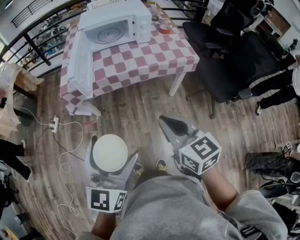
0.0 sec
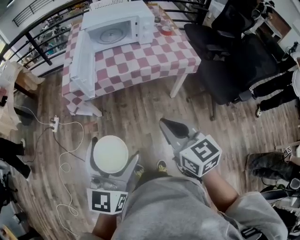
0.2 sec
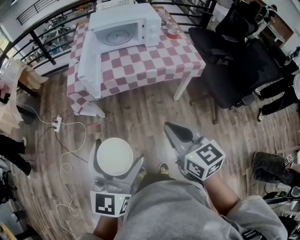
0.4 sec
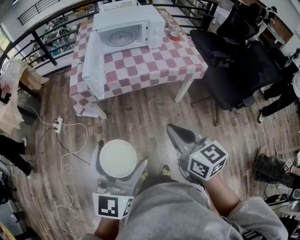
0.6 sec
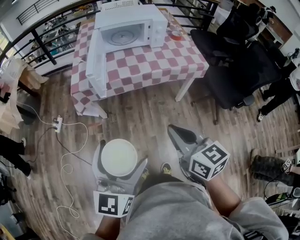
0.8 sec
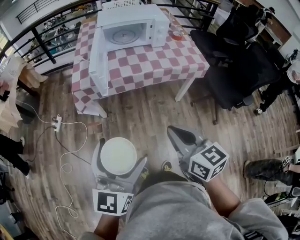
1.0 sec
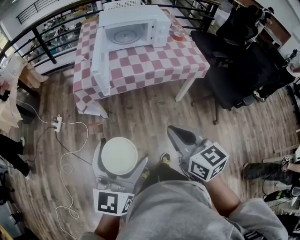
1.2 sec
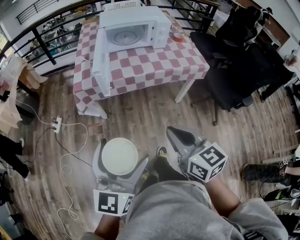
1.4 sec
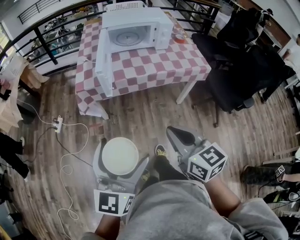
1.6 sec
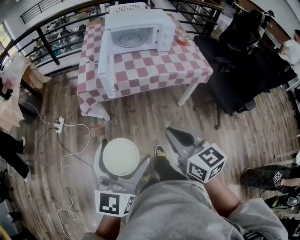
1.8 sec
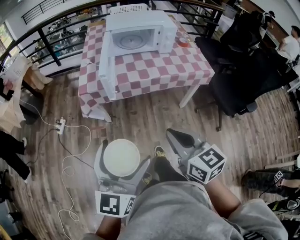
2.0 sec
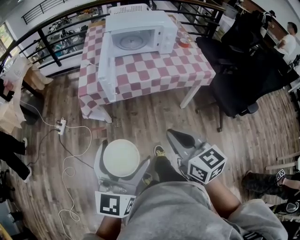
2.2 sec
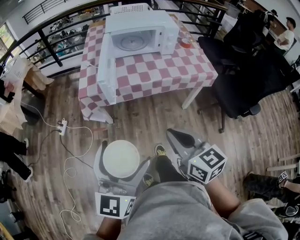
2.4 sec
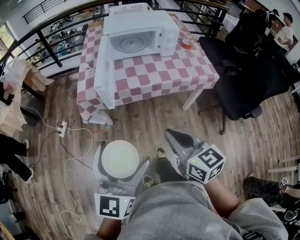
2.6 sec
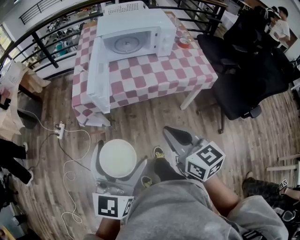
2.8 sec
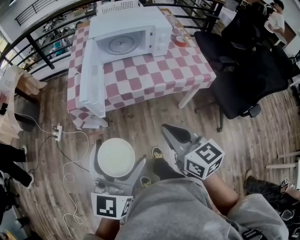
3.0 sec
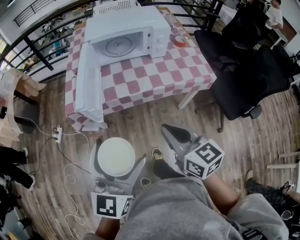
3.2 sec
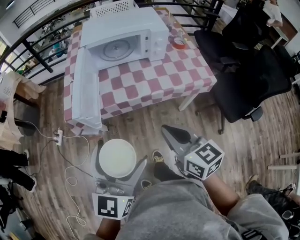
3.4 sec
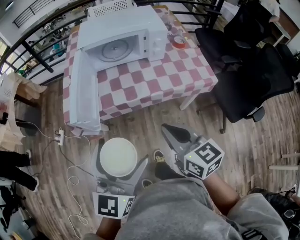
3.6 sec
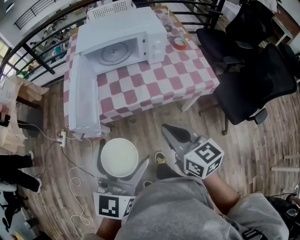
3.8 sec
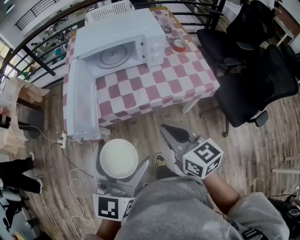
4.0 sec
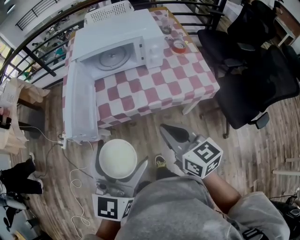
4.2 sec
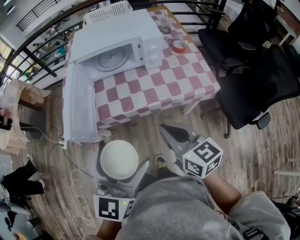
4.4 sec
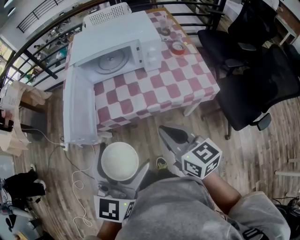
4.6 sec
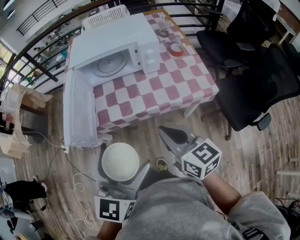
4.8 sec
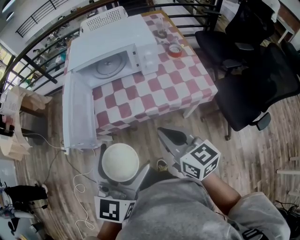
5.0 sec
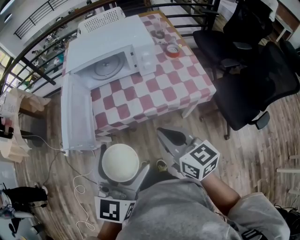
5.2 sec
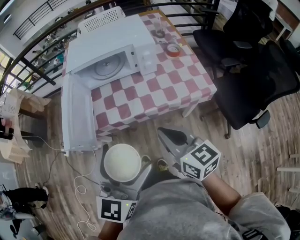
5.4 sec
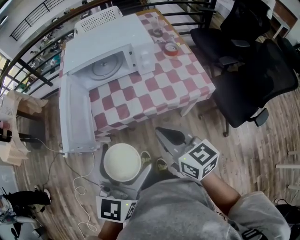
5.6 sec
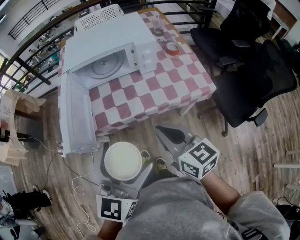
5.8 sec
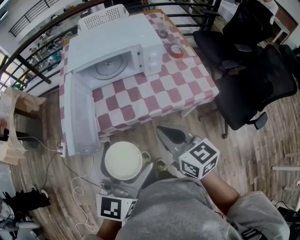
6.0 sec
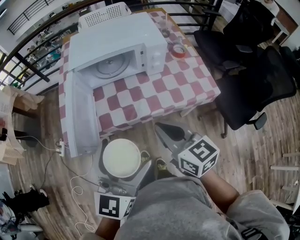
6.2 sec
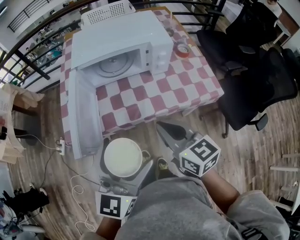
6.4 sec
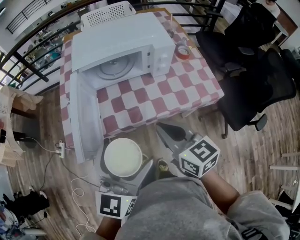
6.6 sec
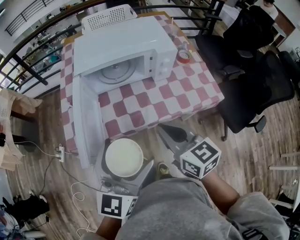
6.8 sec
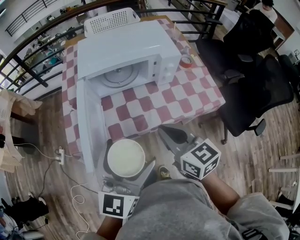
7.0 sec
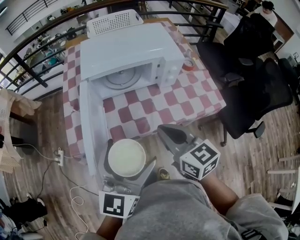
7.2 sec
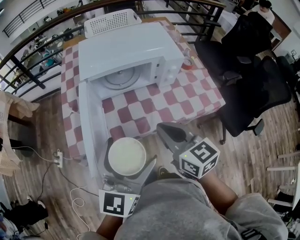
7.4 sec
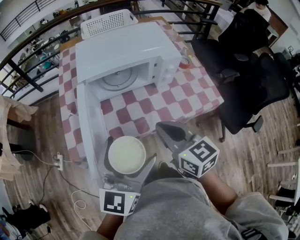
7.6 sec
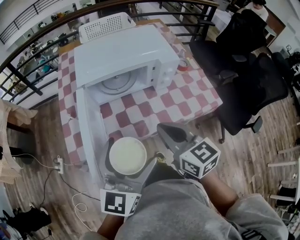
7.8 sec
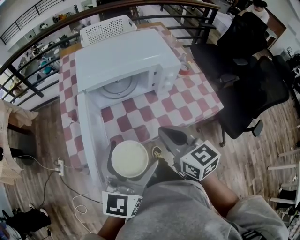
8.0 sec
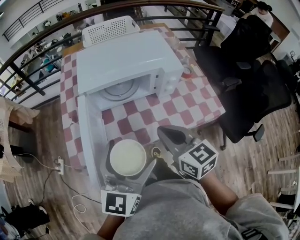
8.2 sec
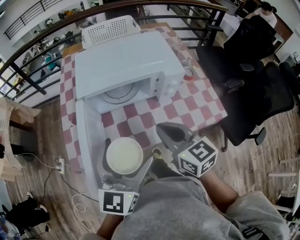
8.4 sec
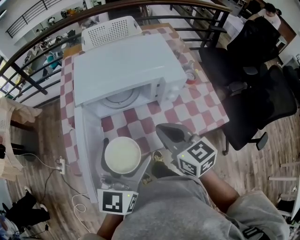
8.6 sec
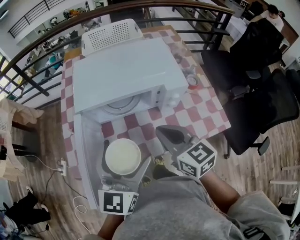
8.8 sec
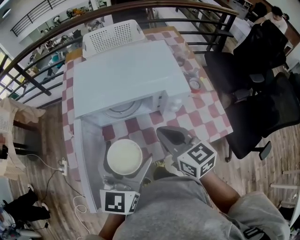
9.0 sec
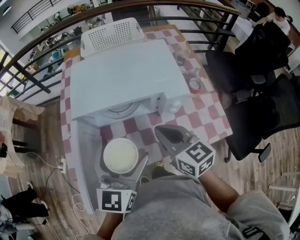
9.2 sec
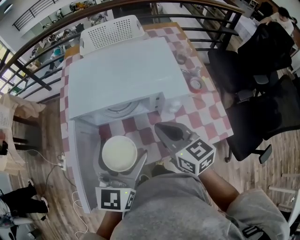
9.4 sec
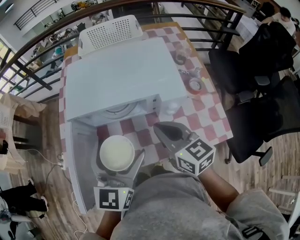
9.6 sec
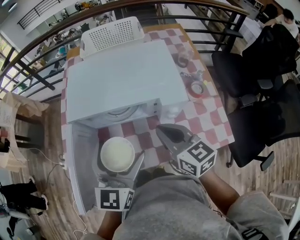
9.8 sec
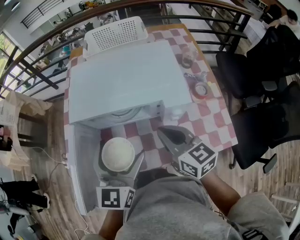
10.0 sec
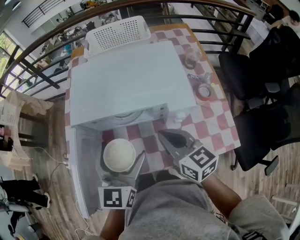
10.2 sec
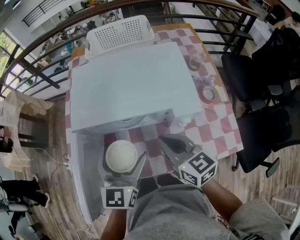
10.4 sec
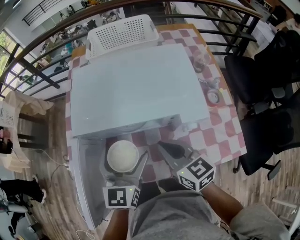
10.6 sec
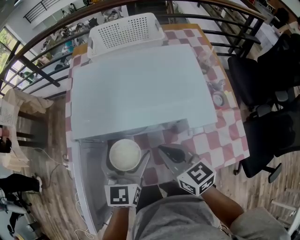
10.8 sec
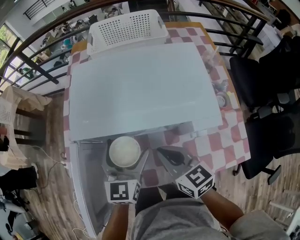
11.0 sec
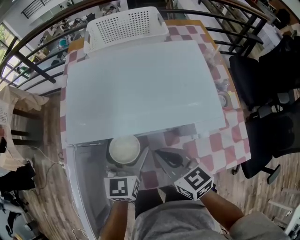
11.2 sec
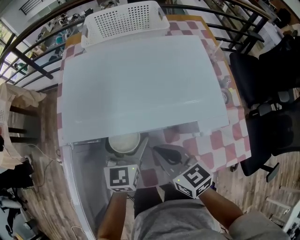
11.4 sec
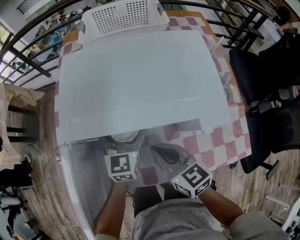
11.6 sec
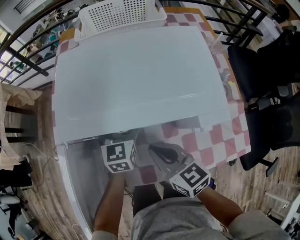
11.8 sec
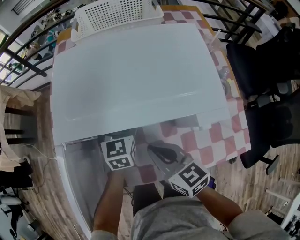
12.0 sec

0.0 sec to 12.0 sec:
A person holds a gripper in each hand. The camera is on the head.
0.0 sec to 1.6 sec: Both grippers travel together to the left, some 10 cm.
1.6 sec to 3.0 sec: The left gripper goes roughly 15 cm forward and to the right. The right gripper goes approximately 15 cm forward.
3.0 sec to 4.4 sec: The right gripper shifts approximately 15 cm forward and to the right. The left gripper moves to the right and forward, some 15 cm.
4.4 sec to 6.0 sec: The grippers make only small movements.
6.0 sec to 7.6 sec: The grippers both shift forward and to the left by about 15 cm.
7.6 sec to 9.0 sec: Both grippers move forward, roughly 15 cm.
9.0 sec to 10.4 sec: The right gripper goes roughly 5 cm forward; the left gripper goes about 10 cm forward and downward.
10.4 sec to 12.0 sec: The right gripper shifts roughly 10 cm downward and to the left; the left gripper goes some 25 cm forward and downward.

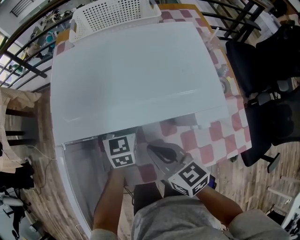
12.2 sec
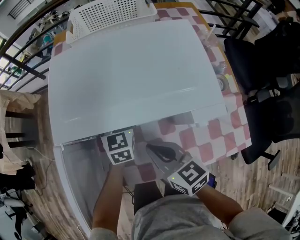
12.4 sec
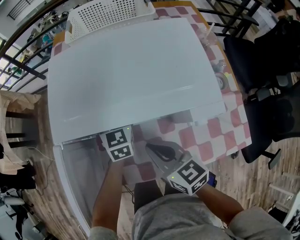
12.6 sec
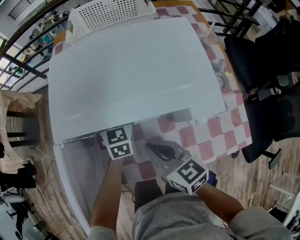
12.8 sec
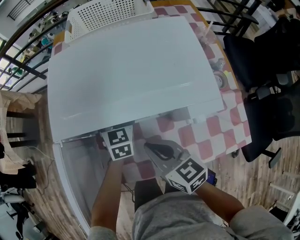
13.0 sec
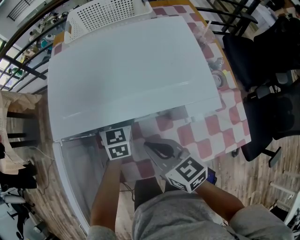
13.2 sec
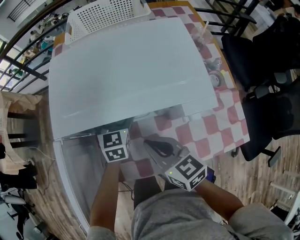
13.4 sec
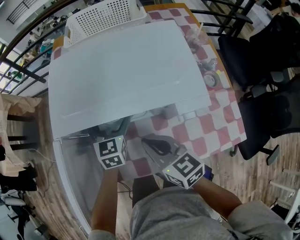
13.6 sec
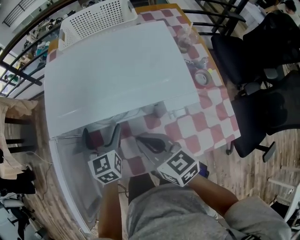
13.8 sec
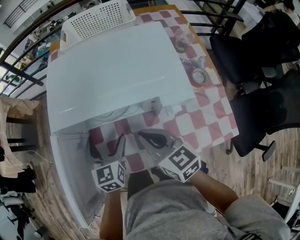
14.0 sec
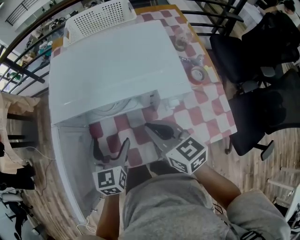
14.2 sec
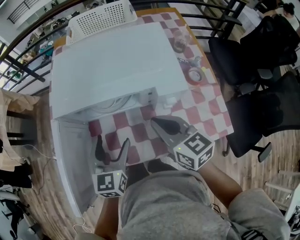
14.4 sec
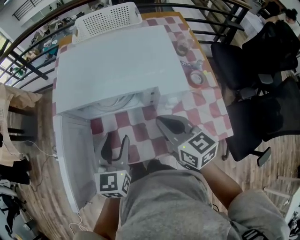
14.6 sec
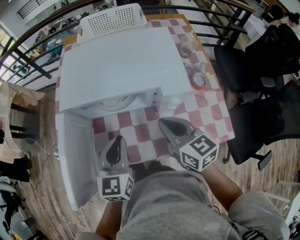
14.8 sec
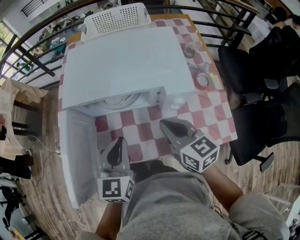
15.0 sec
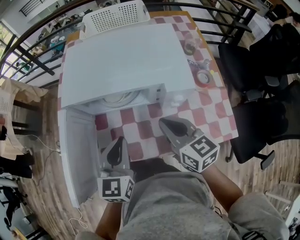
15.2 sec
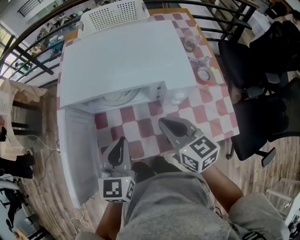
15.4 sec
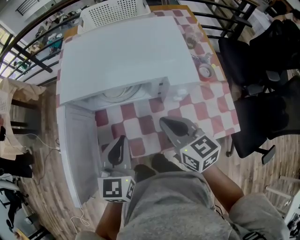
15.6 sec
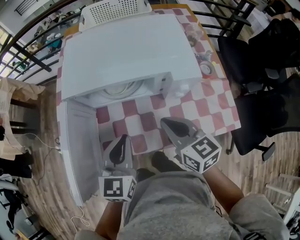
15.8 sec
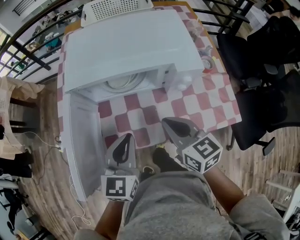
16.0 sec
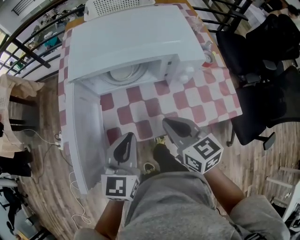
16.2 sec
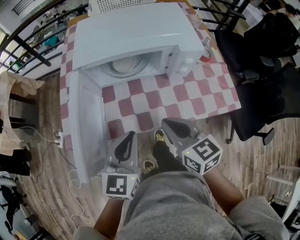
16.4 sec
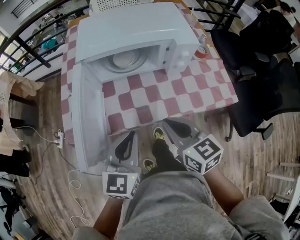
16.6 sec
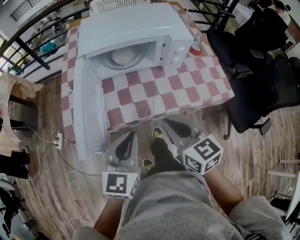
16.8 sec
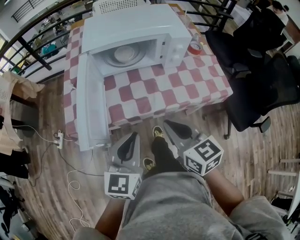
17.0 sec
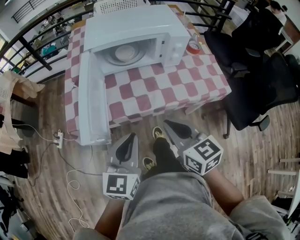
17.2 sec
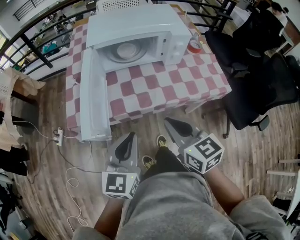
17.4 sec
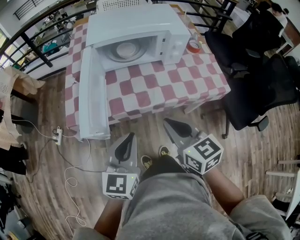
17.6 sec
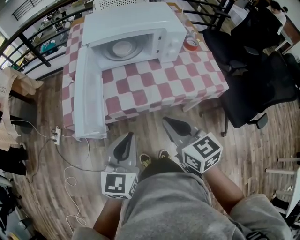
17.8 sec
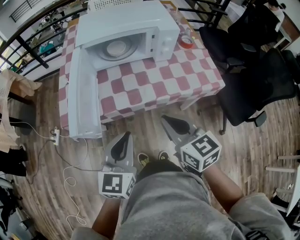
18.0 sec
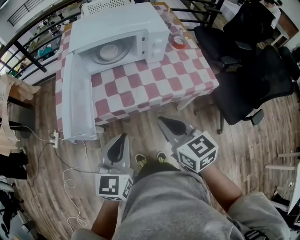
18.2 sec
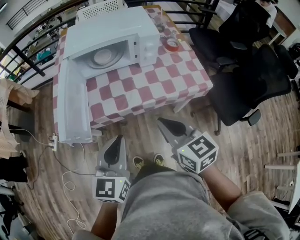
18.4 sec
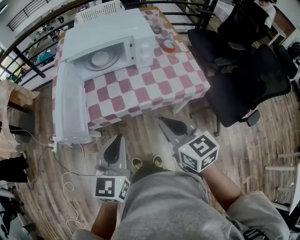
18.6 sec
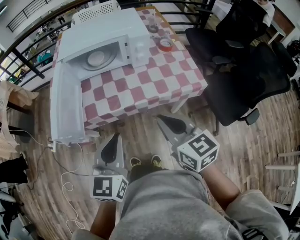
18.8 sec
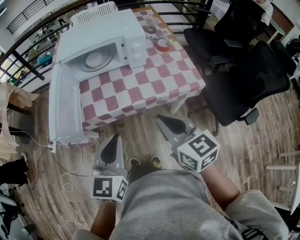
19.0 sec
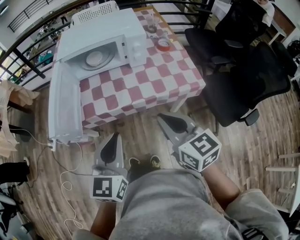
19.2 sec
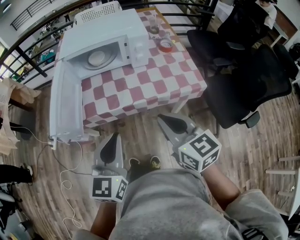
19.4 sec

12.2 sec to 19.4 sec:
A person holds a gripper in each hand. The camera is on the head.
12.2 sec to 13.6 sec: There are only small adjustments of the grippers.
13.6 sec to 15.0 sec: The right gripper shifts roughly 10 cm to the right and upward; the left gripper shifts some 20 cm backward and upward, and closes up.
15.0 sec to 16.6 sec: The two grippers go roughly 15 cm backward and to the left.
16.6 sec to 18.0 sec: The grippers both shift backward by roughly 10 cm.
18.0 sec to 19.4 sec: The grippers both shift to the right by roughly 10 cm.

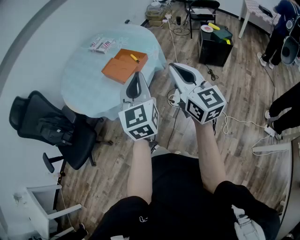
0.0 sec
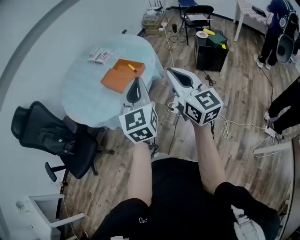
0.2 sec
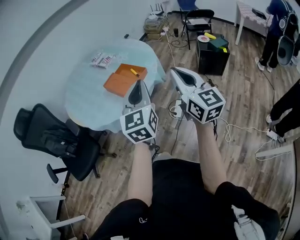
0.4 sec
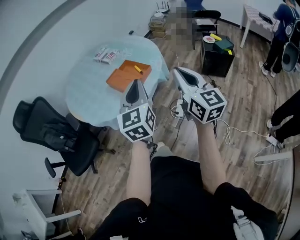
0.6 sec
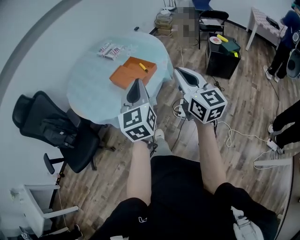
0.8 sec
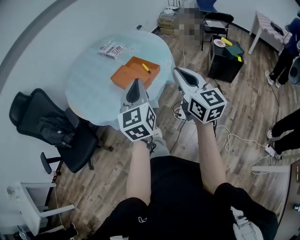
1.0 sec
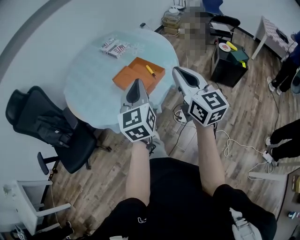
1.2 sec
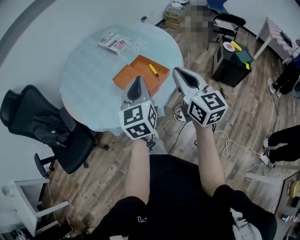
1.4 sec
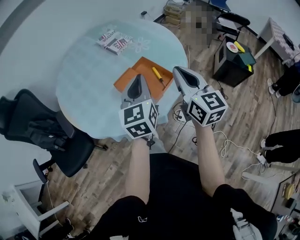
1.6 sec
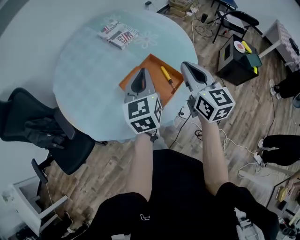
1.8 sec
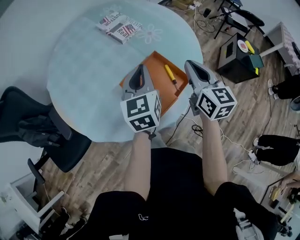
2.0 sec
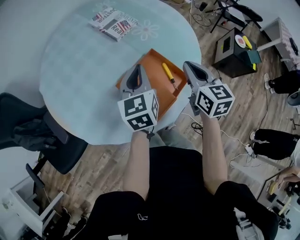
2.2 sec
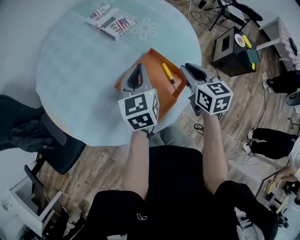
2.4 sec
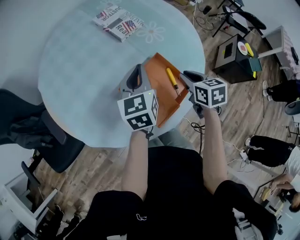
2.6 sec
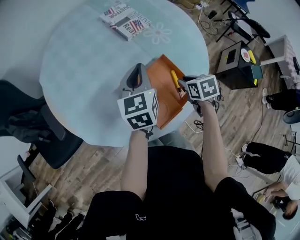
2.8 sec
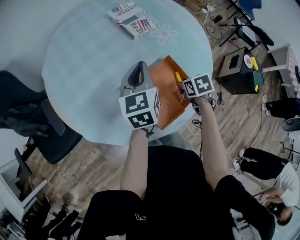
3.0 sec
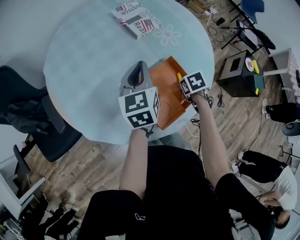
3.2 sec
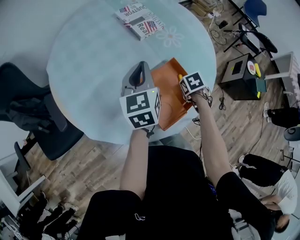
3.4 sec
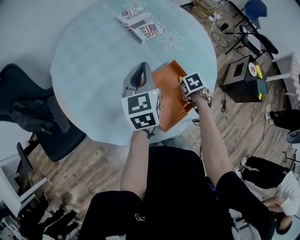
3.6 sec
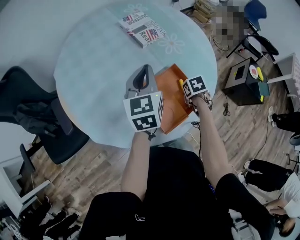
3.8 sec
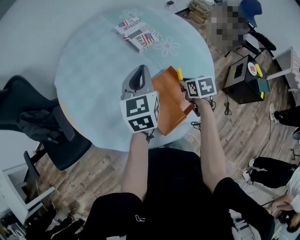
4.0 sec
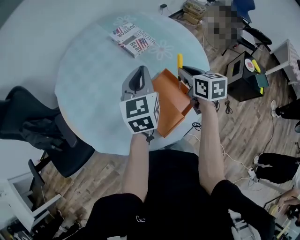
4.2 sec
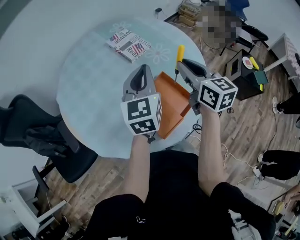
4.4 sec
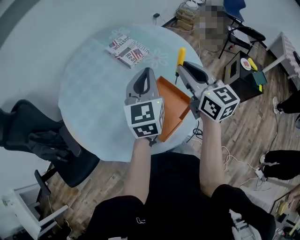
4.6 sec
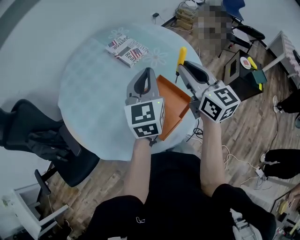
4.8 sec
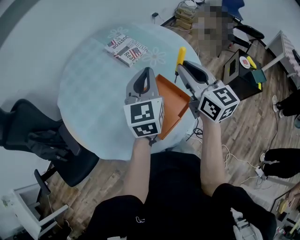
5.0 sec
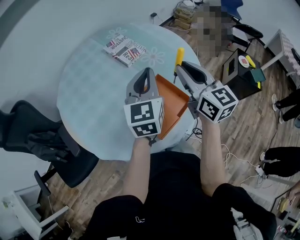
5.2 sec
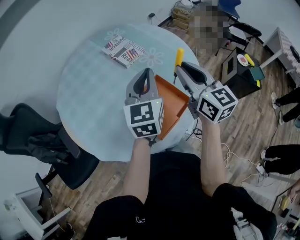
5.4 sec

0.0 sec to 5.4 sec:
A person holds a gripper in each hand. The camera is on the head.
0.0 sec to 1.4 sec: The right gripper moves forward, about 20 cm, while the left gripper heads forward and to the left, covering approximately 25 cm.
1.4 sec to 2.8 sec: The right gripper heads downward and forward, covering about 40 cm, angles its fingers downward, by some 60 degrees, and opens up; the left gripper travels forward and downward by roughly 30 cm.
2.8 sec to 4.0 sec: The right gripper moves approximately 10 cm downward and comes back; the left gripper moves upward, some 5 cm.
4.0 sec to 5.4 sec: The left gripper moves to the right and upward, about 10 cm; the right gripper heads upward, covering about 25 cm, and angles its fingers upward, by some 50 degrees.
